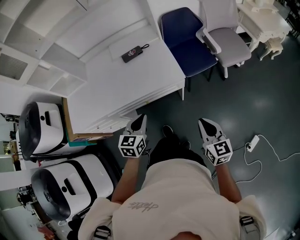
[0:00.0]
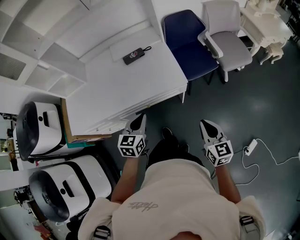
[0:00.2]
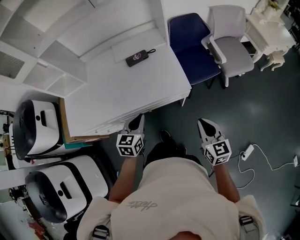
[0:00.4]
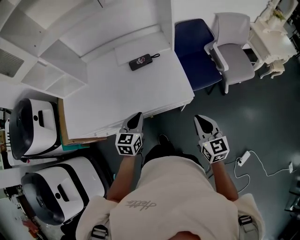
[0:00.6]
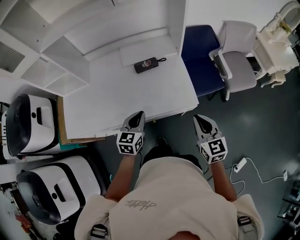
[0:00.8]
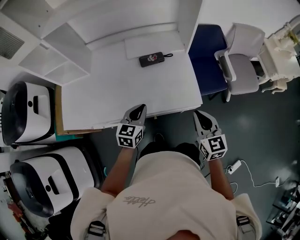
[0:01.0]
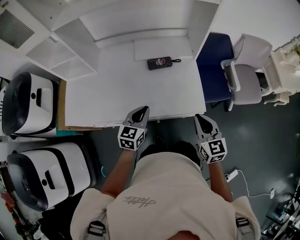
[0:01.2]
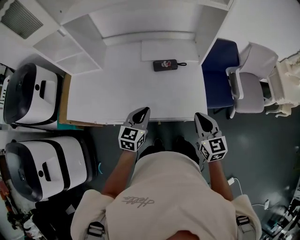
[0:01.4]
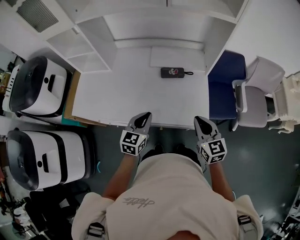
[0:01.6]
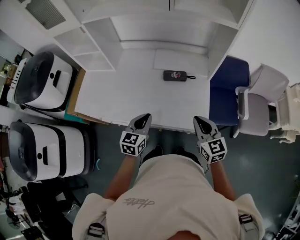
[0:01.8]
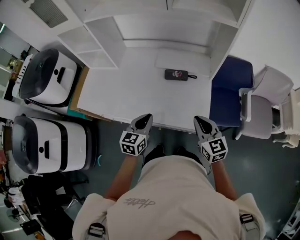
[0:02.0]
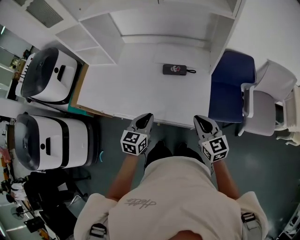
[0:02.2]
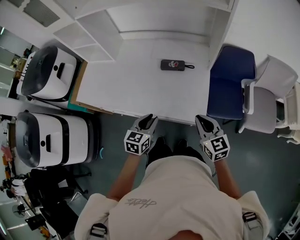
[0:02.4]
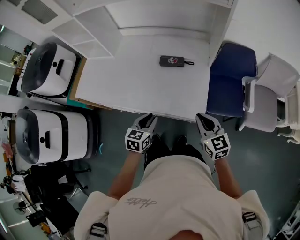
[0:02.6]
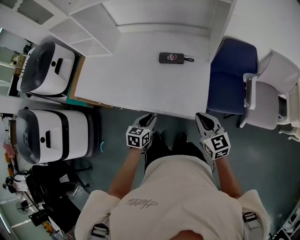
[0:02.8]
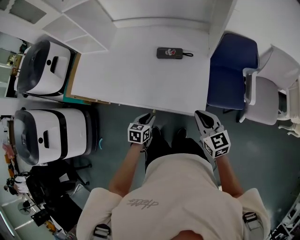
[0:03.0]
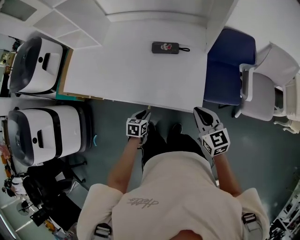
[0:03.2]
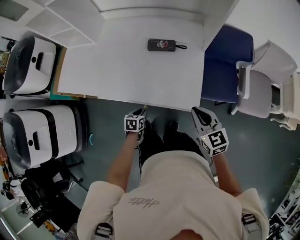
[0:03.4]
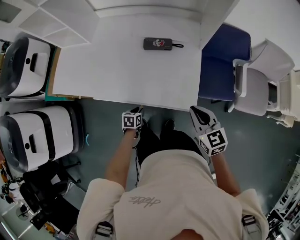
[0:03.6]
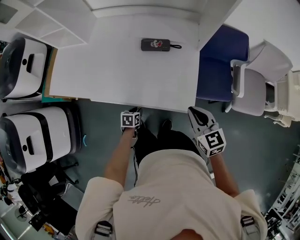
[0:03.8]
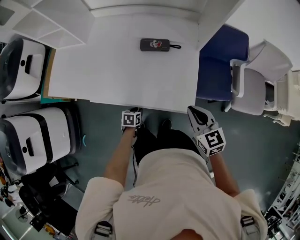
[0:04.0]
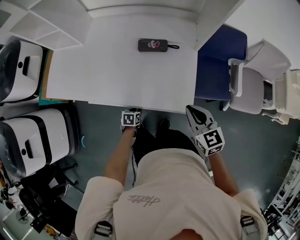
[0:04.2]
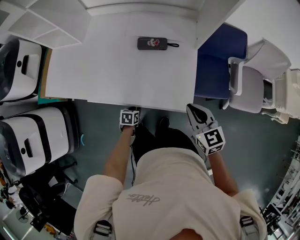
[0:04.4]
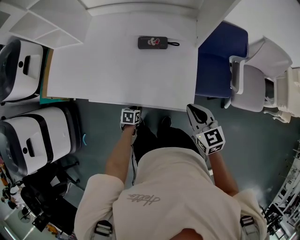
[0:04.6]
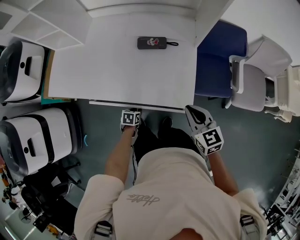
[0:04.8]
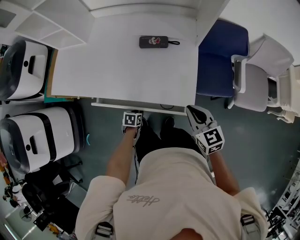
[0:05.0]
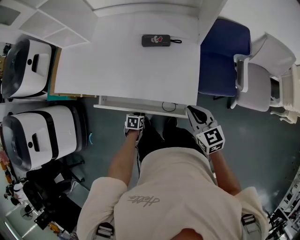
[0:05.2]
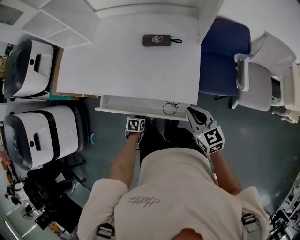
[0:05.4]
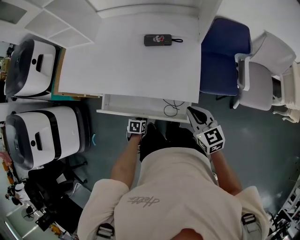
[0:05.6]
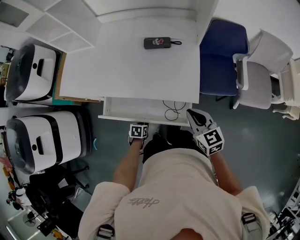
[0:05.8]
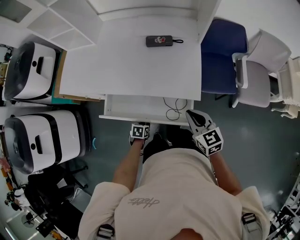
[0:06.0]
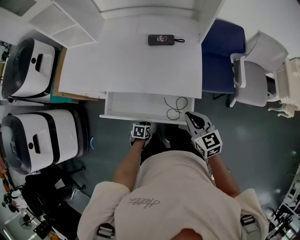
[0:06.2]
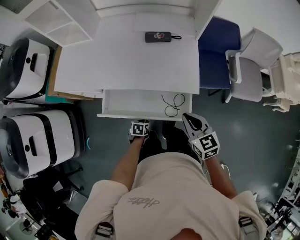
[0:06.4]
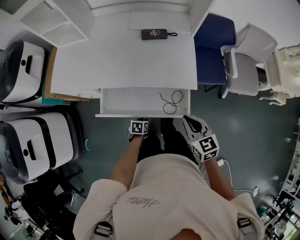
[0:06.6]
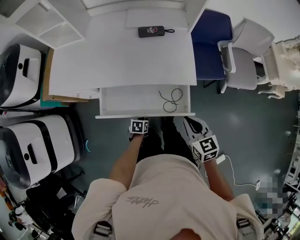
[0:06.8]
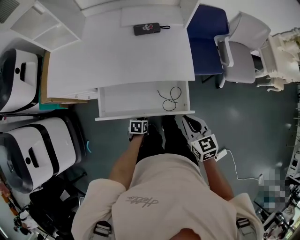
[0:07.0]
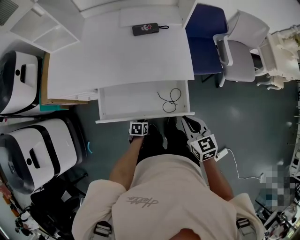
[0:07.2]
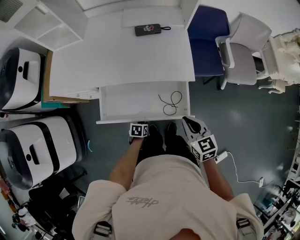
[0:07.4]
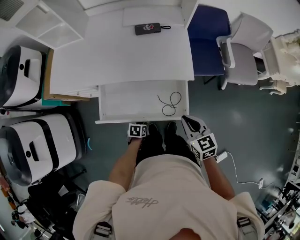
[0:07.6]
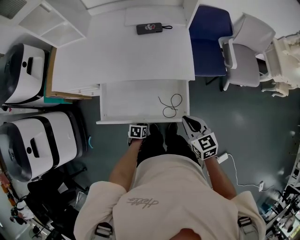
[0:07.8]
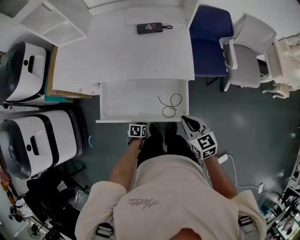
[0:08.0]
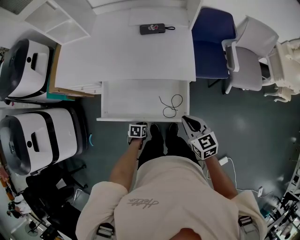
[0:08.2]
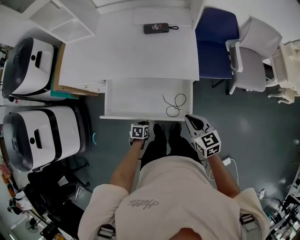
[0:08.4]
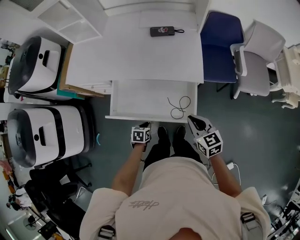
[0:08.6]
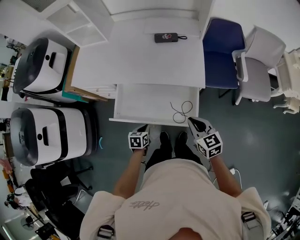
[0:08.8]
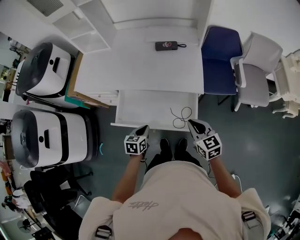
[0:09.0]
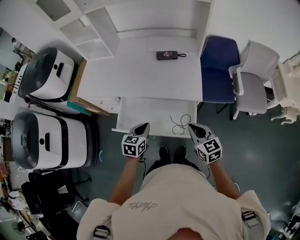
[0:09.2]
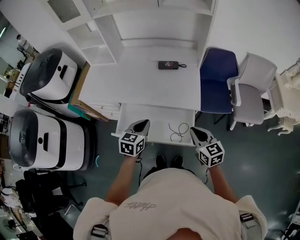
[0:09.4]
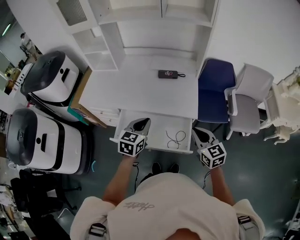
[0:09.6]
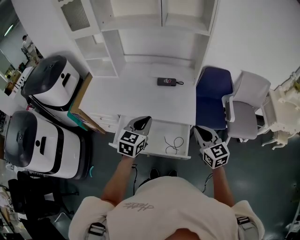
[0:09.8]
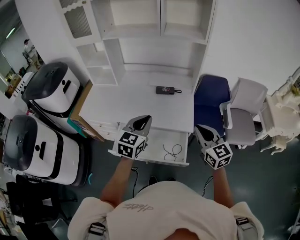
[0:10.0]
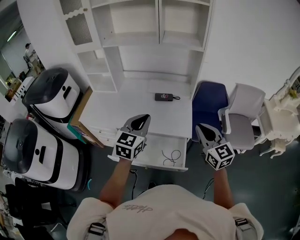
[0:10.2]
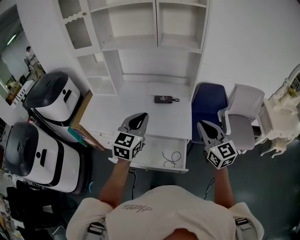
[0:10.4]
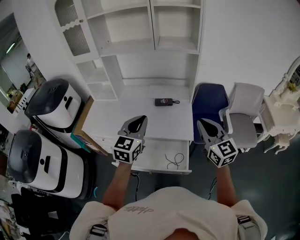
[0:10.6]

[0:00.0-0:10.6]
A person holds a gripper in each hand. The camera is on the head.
0:00.0 to 0:01.6: The left gripper moves forward and to the left, approximately 20 cm, while the right gripper goes approximately 30 cm forward and to the left, and swivels roughly 30 degrees.
0:01.6 to 0:03.0: The left gripper moves downward, approximately 20 cm, and swivels roughly 30 degrees. Meanwhile the right gripper goes about 10 cm to the right and downward.
0:03.0 to 0:04.6: The left gripper travels downward by approximately 15 cm.
0:04.6 to 0:06.0: Both grippers move backward, some 10 cm.
0:06.0 to 0:07.6: The two grippers go approximately 10 cm backward.
0:07.6 to 0:09.0: The left gripper is displaced upward by some 20 cm, and turns by some 30 degrees.
0:09.0 to 0:10.6: Both grippers travel together upward, some 35 cm. The left gripper points its fingers about 40 degrees further upward; the right gripper rotates roughly 30 degrees.

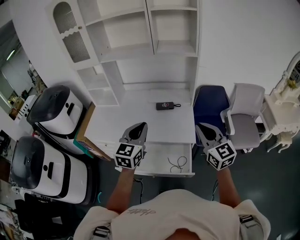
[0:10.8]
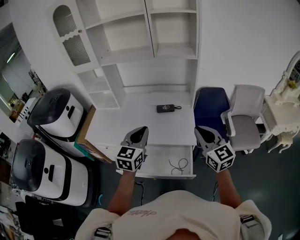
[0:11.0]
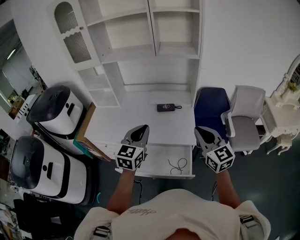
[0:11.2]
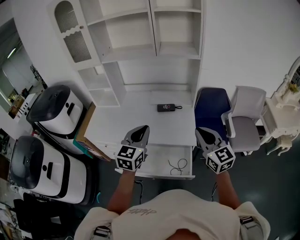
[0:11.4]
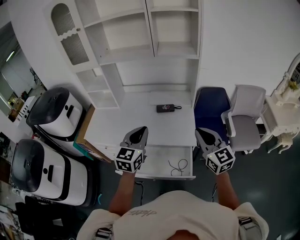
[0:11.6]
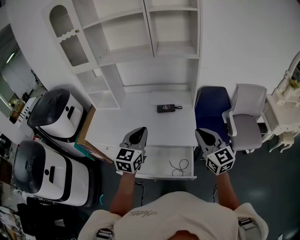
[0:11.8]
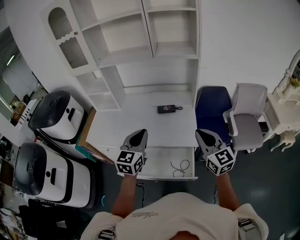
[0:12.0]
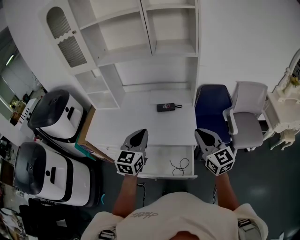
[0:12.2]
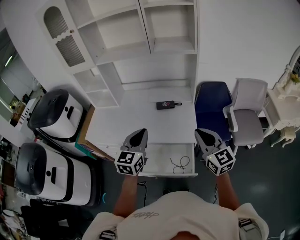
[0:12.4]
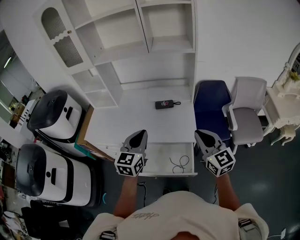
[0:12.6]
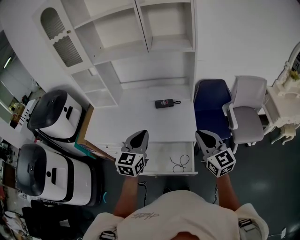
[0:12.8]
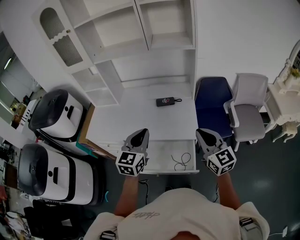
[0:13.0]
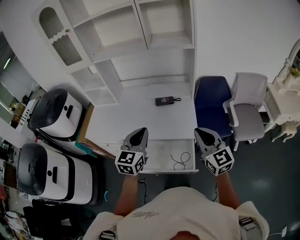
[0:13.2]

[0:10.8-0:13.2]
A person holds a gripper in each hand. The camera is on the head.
0:10.8 to 0:13.2: The grippers stay close to where they were, moving slightly.

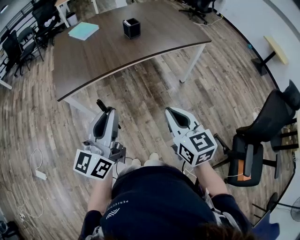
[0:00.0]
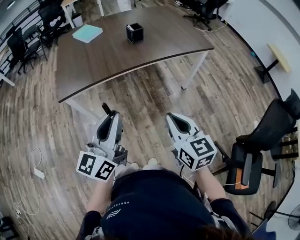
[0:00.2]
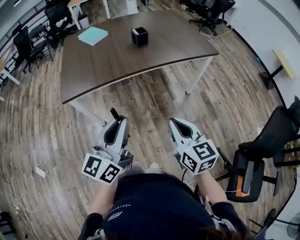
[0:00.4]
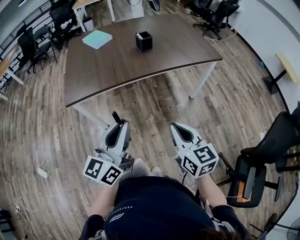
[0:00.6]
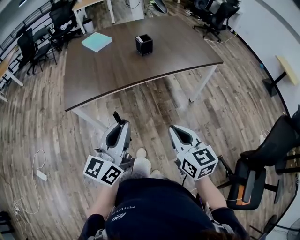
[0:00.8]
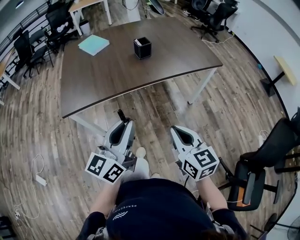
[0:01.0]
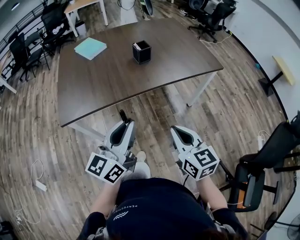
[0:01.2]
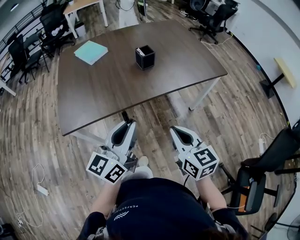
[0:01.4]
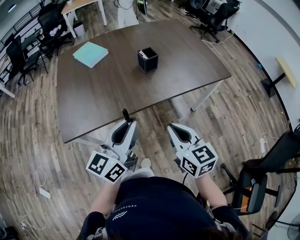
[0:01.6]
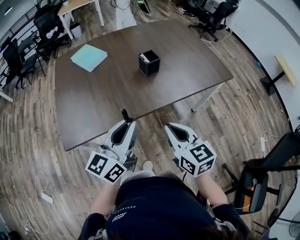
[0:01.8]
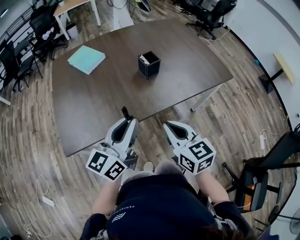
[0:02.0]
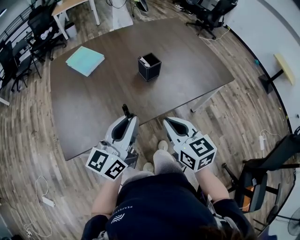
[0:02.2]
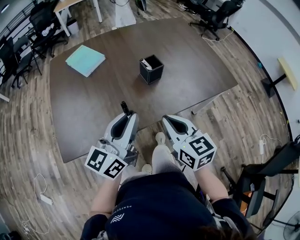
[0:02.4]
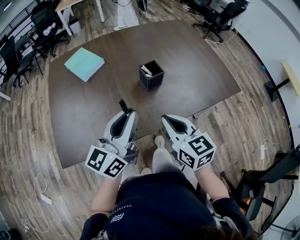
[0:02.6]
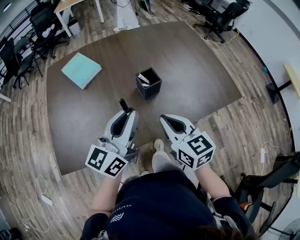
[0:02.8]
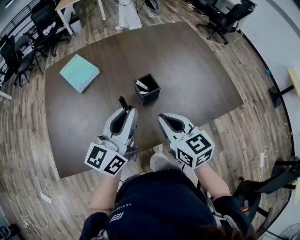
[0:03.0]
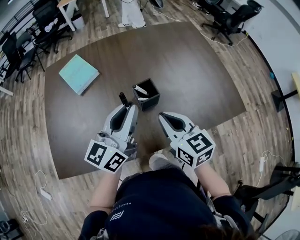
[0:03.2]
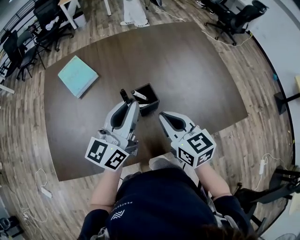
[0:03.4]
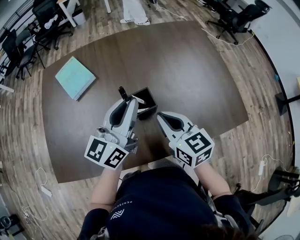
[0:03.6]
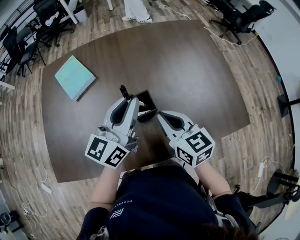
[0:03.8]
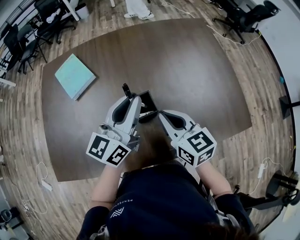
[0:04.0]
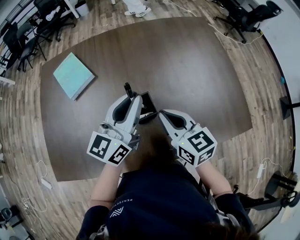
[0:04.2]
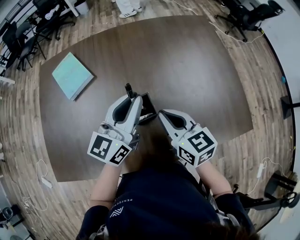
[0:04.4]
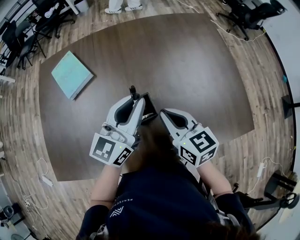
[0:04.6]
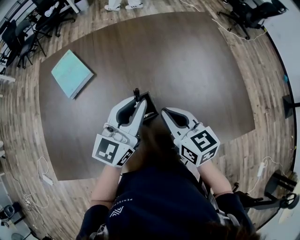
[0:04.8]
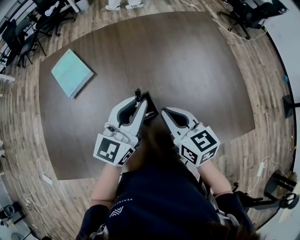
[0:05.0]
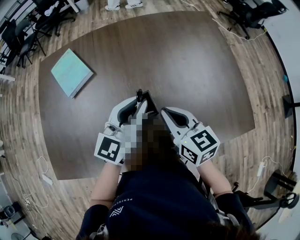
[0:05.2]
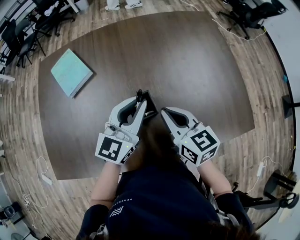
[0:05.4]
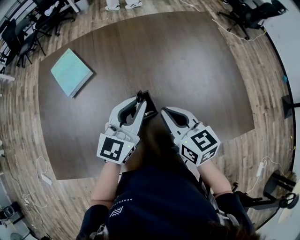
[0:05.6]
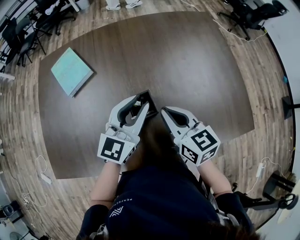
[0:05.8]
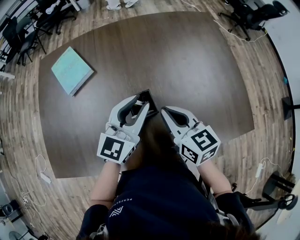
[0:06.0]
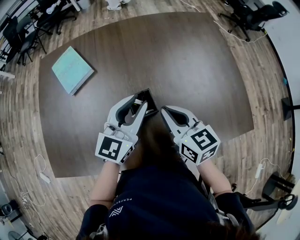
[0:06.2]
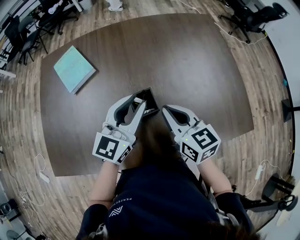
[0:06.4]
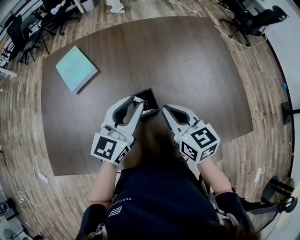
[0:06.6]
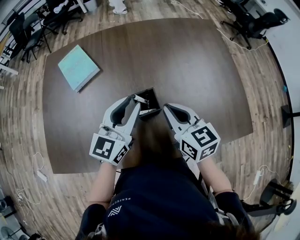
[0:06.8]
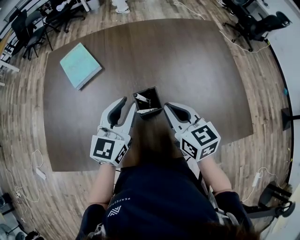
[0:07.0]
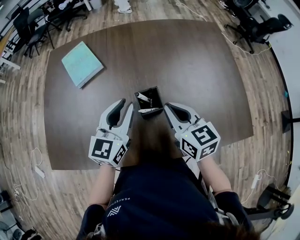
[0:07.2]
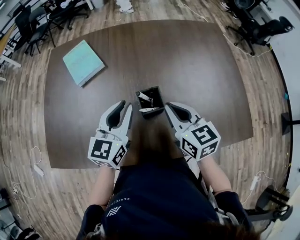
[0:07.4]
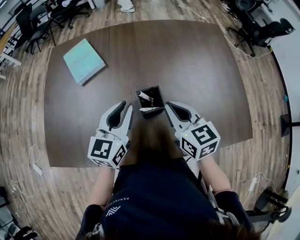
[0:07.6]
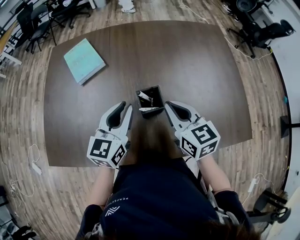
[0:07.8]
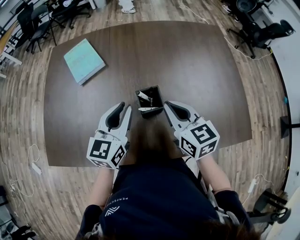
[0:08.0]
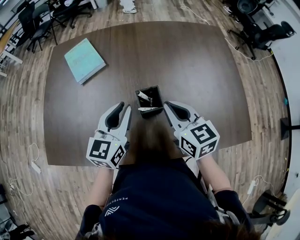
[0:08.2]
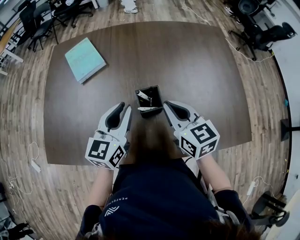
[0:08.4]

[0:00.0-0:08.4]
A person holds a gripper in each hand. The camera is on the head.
0:00.0 to 0:01.4: The two grippers go approximately 20 cm forward.
0:01.4 to 0:02.8: The grippers both shift forward by roughly 25 cm.
0:02.8 to 0:04.2: The left gripper goes approximately 20 cm forward and to the right. The right gripper moves forward, roughly 15 cm.
0:04.2 to 0:05.6: The left gripper travels downward by some 5 cm, and swivels some 20 degrees.
0:05.6 to 0:07.0: The left gripper heads to the left, covering roughly 5 cm.
0:07.0 to 0:08.4: The grippers stay close to where they were, moving slightly.

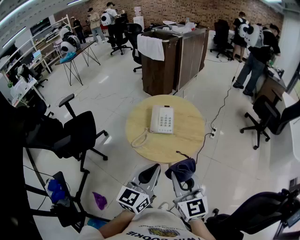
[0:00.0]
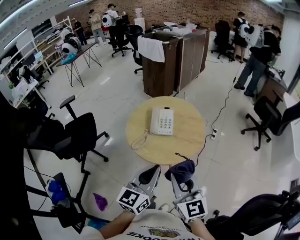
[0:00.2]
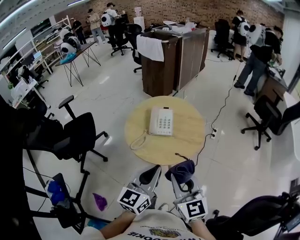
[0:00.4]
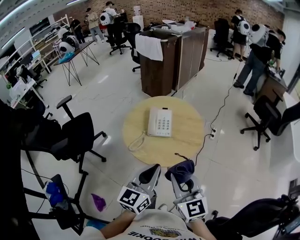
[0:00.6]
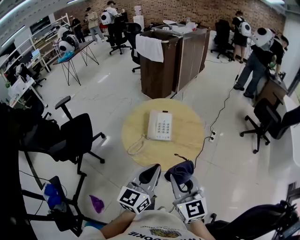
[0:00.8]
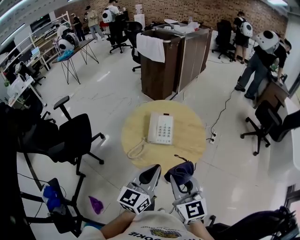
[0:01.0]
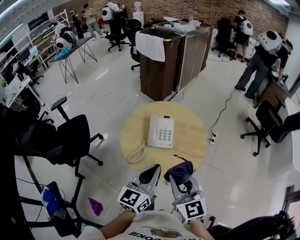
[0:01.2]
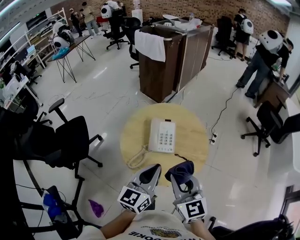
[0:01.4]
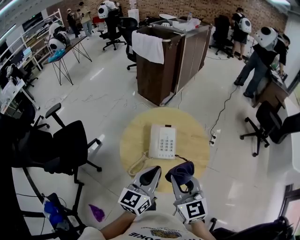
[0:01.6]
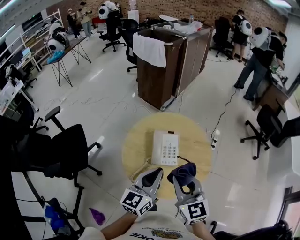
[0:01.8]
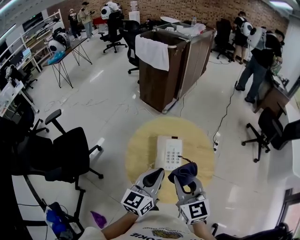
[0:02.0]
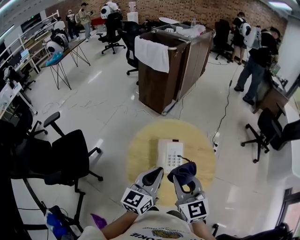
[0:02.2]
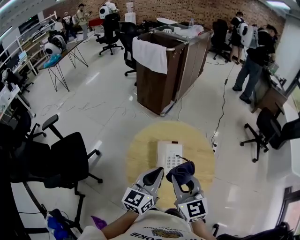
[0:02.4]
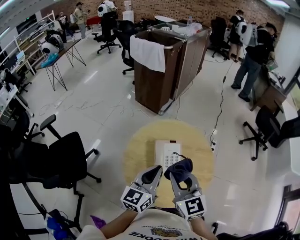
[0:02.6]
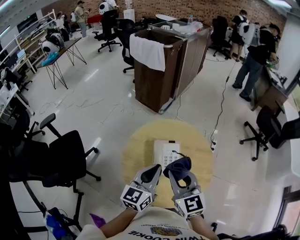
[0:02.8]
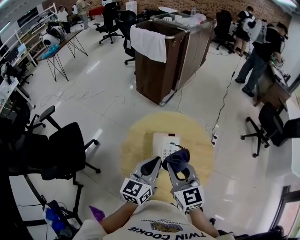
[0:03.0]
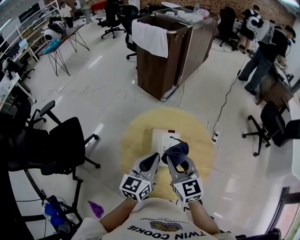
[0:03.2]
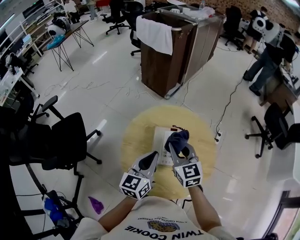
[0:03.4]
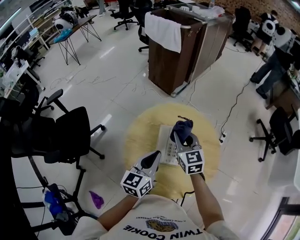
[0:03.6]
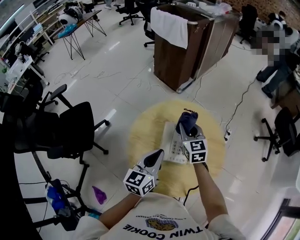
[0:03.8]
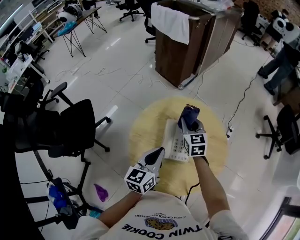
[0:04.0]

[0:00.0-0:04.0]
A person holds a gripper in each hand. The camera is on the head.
0:00.0 to 0:01.4: Both grippers travel together forward, some 15 cm.
0:01.4 to 0:02.6: Both grippers move forward and to the left, about 15 cm.
0:02.6 to 0:04.0: The right gripper is displaced forward and downward by approximately 25 cm, while the left gripper travels downward by roughly 10 cm.
